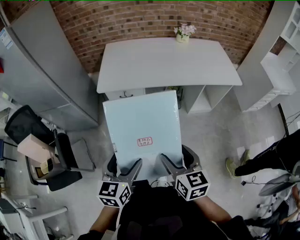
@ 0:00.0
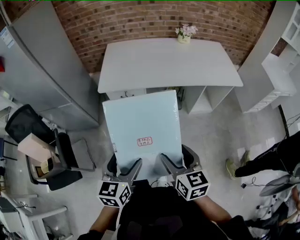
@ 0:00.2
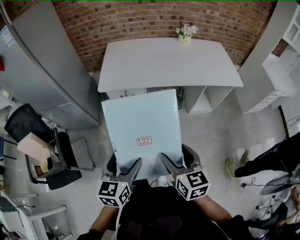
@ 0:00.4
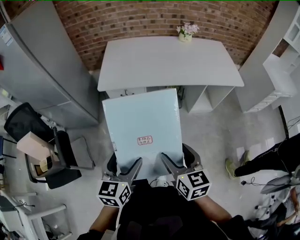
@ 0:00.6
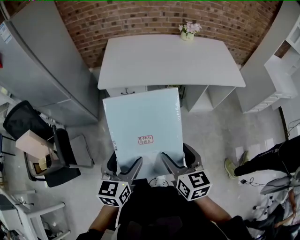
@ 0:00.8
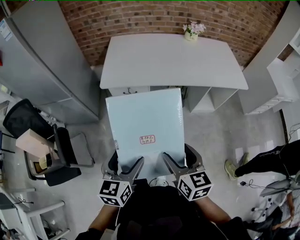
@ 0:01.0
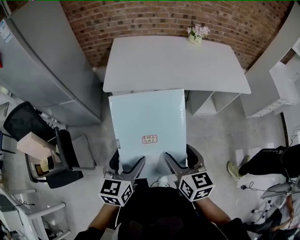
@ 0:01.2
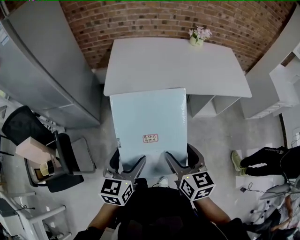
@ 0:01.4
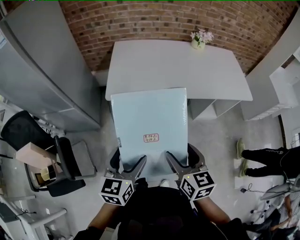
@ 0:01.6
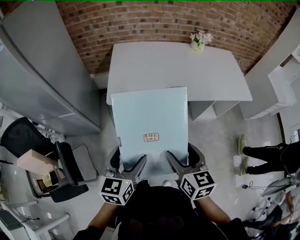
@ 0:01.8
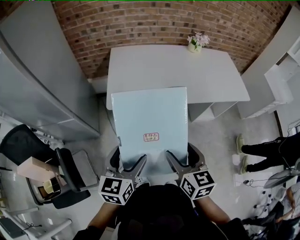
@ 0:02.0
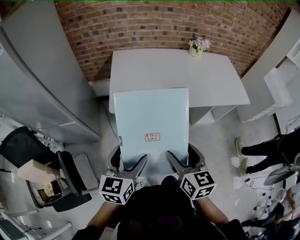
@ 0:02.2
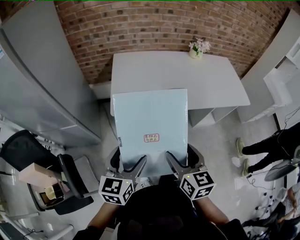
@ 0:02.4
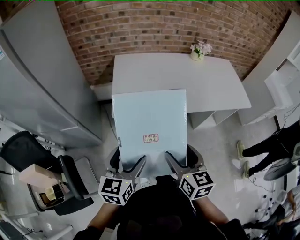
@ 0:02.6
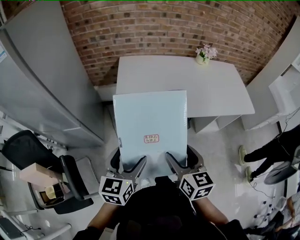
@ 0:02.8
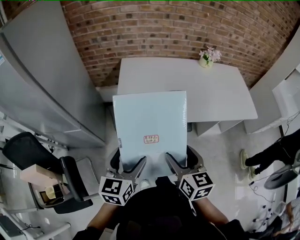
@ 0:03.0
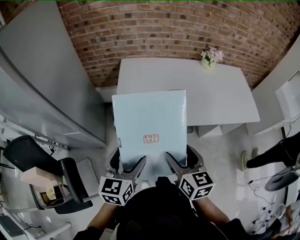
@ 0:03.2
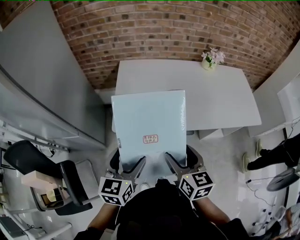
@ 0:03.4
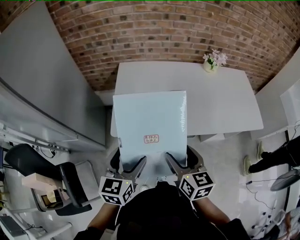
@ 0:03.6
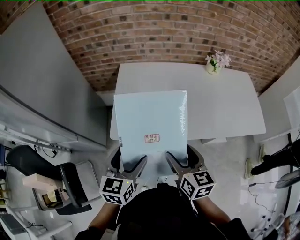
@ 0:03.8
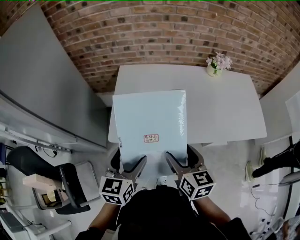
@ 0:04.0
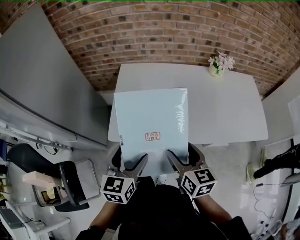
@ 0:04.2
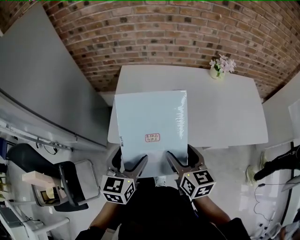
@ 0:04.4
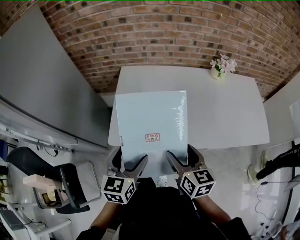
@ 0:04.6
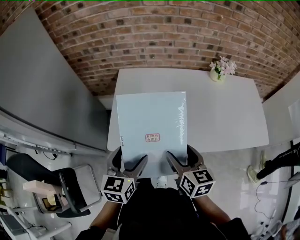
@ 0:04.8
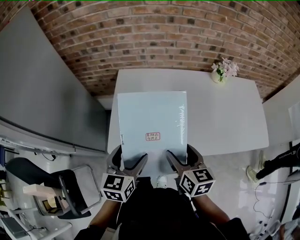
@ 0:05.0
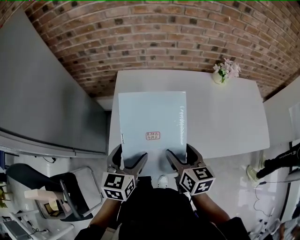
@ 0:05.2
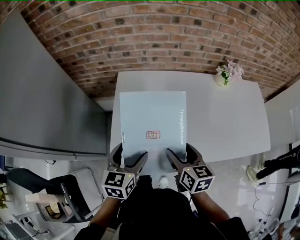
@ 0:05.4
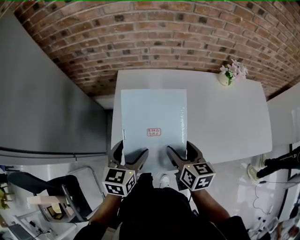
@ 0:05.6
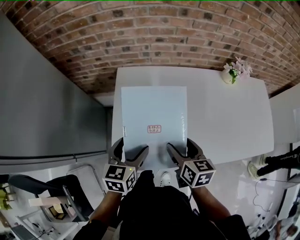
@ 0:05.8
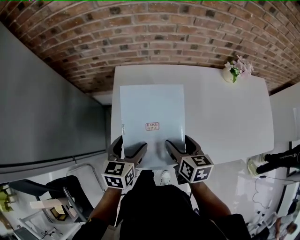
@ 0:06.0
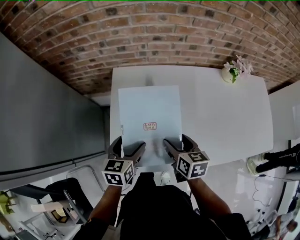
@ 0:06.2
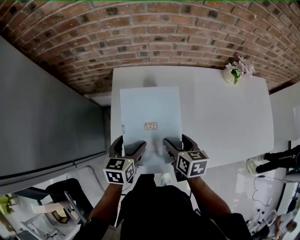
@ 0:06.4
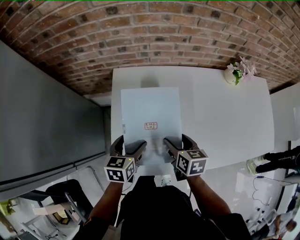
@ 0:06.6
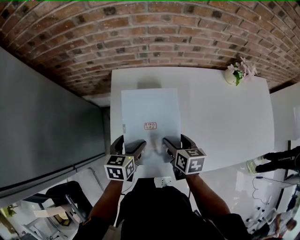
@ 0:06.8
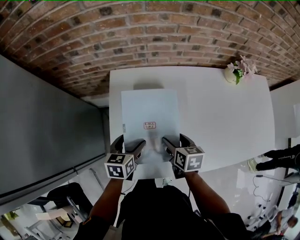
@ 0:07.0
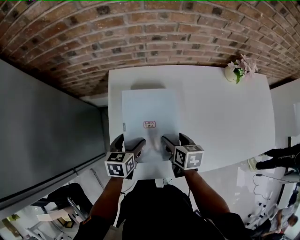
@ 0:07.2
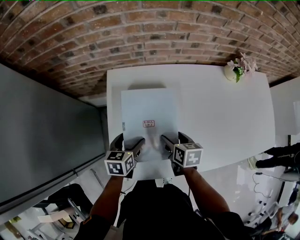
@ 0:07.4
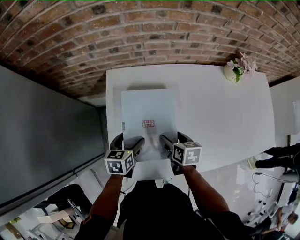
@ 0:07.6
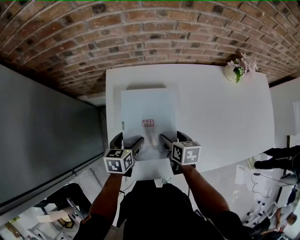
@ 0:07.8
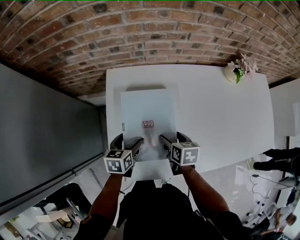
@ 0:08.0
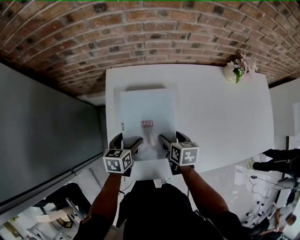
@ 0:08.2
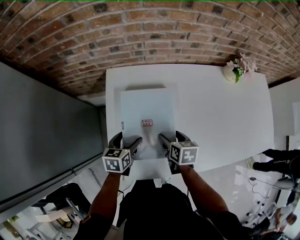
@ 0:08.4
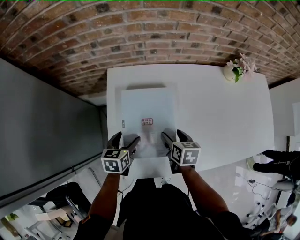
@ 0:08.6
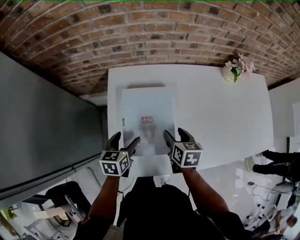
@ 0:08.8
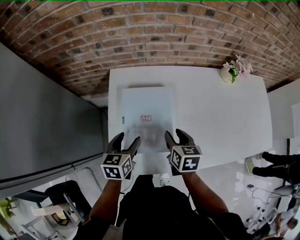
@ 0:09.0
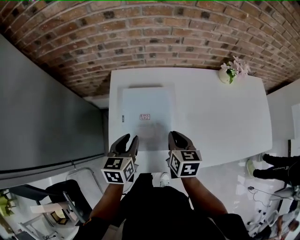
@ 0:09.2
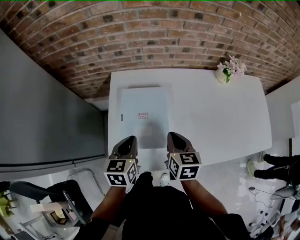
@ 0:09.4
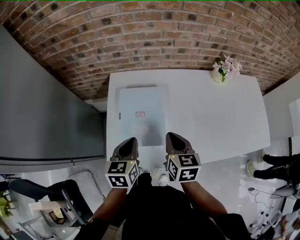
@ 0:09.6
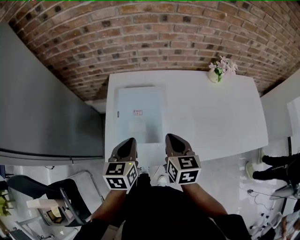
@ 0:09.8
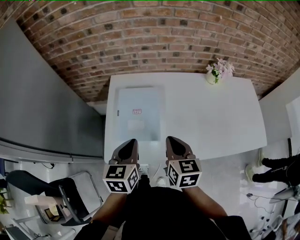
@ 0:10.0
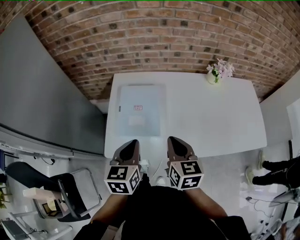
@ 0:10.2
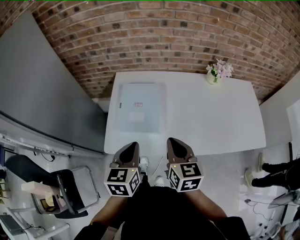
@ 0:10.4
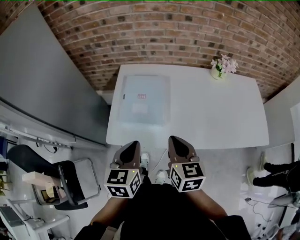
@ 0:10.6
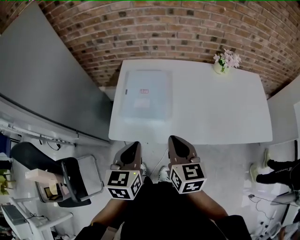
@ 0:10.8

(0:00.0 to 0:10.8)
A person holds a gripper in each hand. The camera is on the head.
0:00.0 - 0:01.6: The two grippers go some 15 cm forward and to the left.
0:01.6 - 0:03.0: The two grippers go some 15 cm forward and to the left.
0:03.0 - 0:04.6: The two grippers go about 20 cm forward and to the right.
0:04.6 - 0:06.2: Both grippers move forward and downward, roughly 25 cm.
0:06.2 - 0:07.8: Both grippers move downward and forward, some 10 cm.
0:07.8 - 0:09.2: The grippers both shift upward by about 10 cm. The left gripper closes its fingers. Meanwhile the right gripper closes up.
0:09.2 - 0:10.8: The grippers both shift backward and upward by some 25 cm.

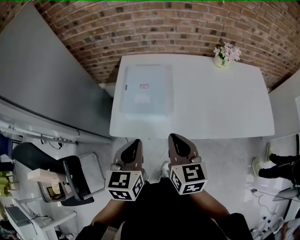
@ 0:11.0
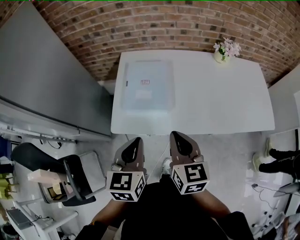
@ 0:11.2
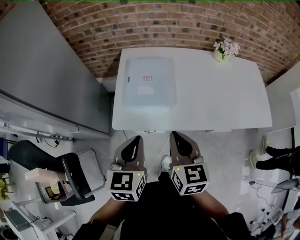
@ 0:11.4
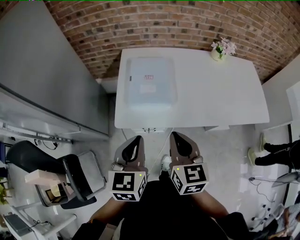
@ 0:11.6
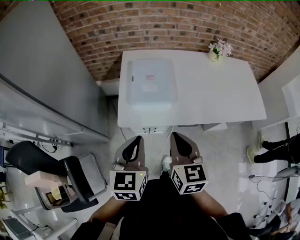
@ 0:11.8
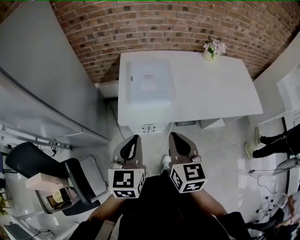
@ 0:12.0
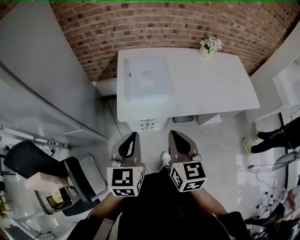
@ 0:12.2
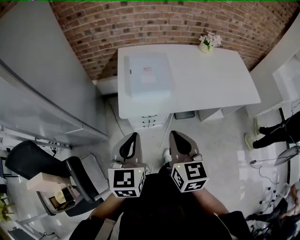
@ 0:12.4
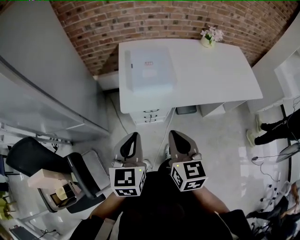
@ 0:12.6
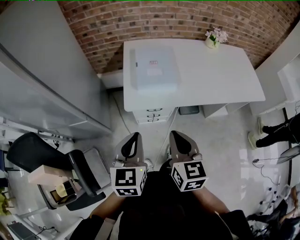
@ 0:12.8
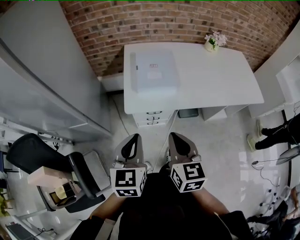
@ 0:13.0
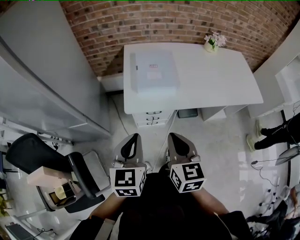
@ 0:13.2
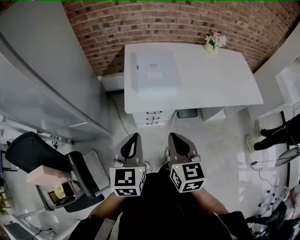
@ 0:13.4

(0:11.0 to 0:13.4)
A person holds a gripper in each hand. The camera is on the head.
0:11.0 - 0:12.2: The left gripper is displaced to the left and backward by some 15 cm, while the right gripper heads backward and to the left, covering some 15 cm.
0:12.2 - 0:13.4: The right gripper shifts by roughly 5 cm. The left gripper changes place by about 5 cm.

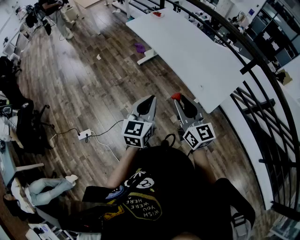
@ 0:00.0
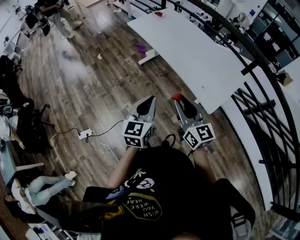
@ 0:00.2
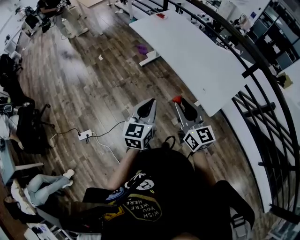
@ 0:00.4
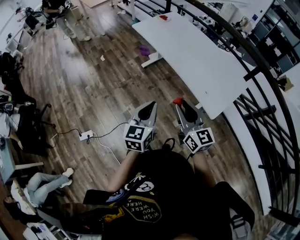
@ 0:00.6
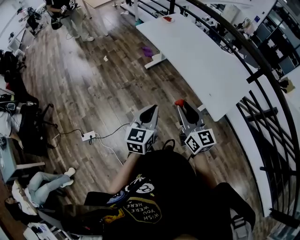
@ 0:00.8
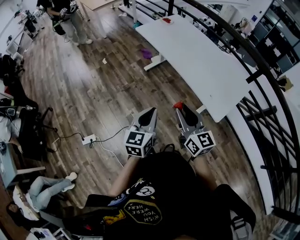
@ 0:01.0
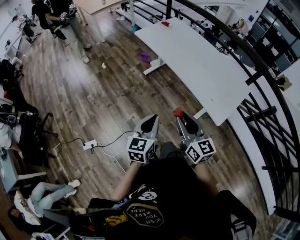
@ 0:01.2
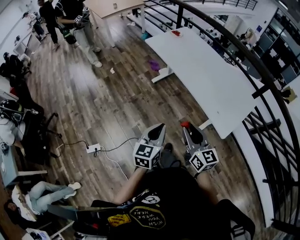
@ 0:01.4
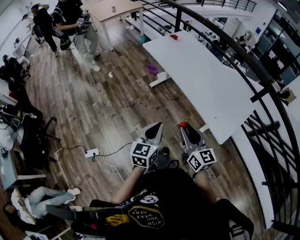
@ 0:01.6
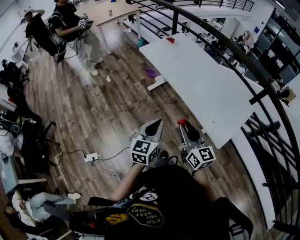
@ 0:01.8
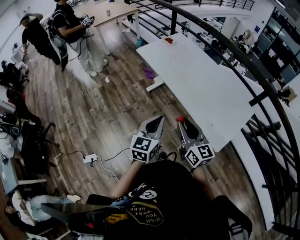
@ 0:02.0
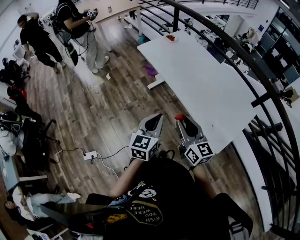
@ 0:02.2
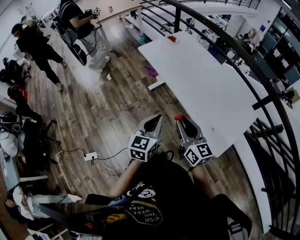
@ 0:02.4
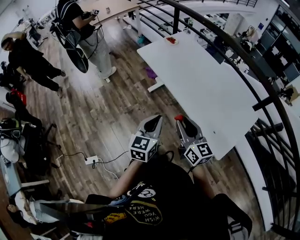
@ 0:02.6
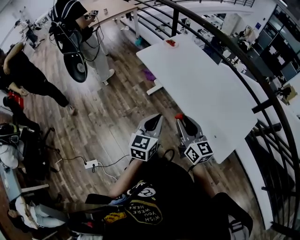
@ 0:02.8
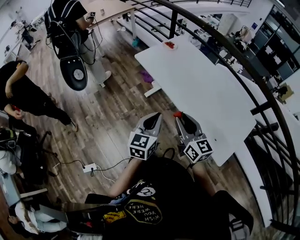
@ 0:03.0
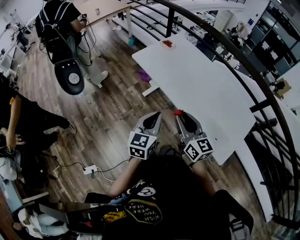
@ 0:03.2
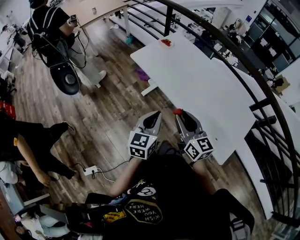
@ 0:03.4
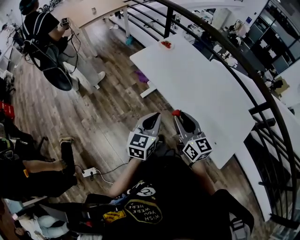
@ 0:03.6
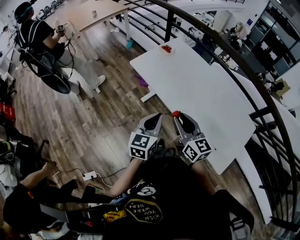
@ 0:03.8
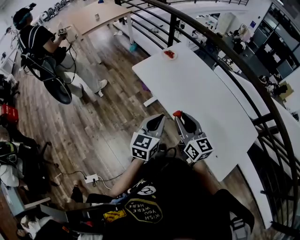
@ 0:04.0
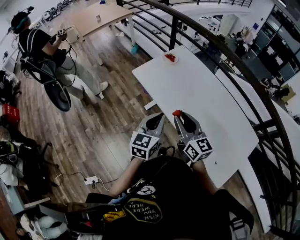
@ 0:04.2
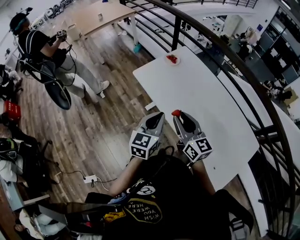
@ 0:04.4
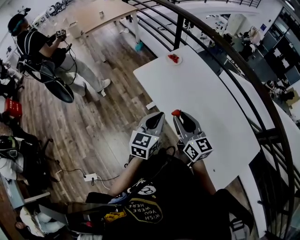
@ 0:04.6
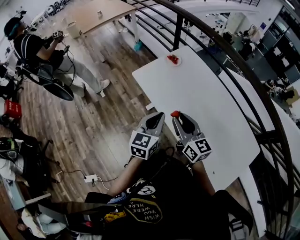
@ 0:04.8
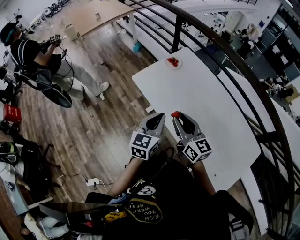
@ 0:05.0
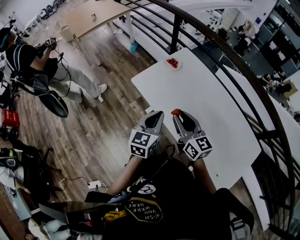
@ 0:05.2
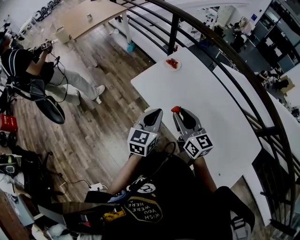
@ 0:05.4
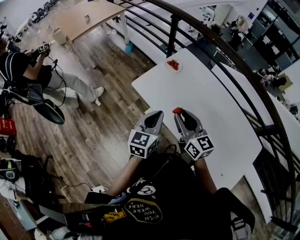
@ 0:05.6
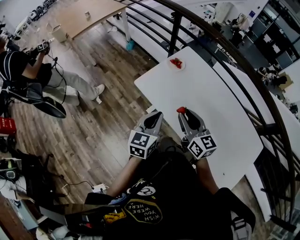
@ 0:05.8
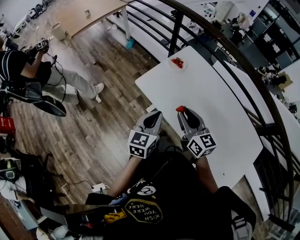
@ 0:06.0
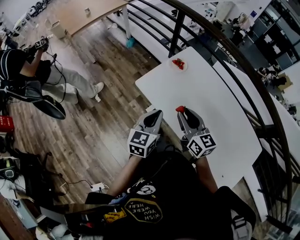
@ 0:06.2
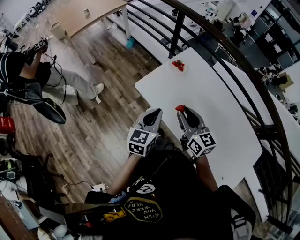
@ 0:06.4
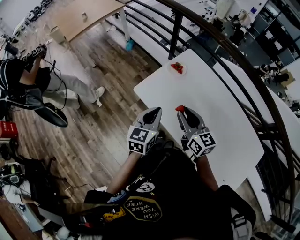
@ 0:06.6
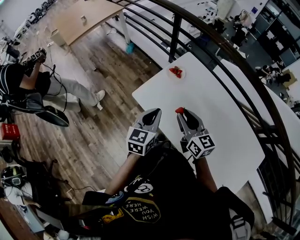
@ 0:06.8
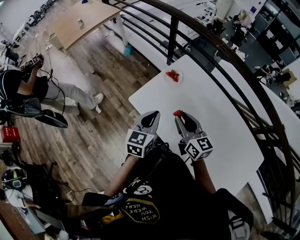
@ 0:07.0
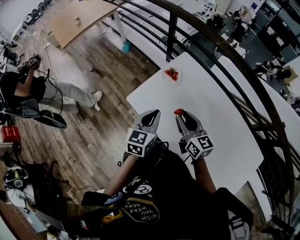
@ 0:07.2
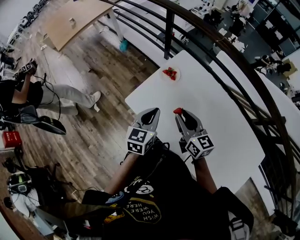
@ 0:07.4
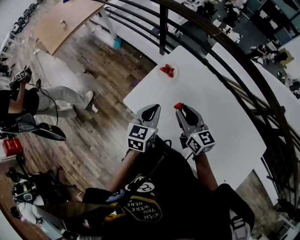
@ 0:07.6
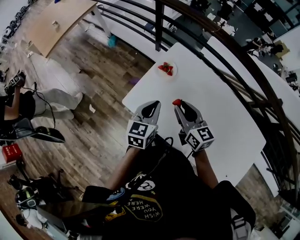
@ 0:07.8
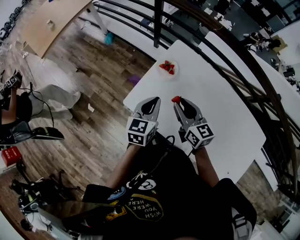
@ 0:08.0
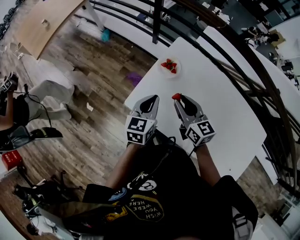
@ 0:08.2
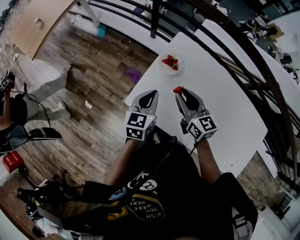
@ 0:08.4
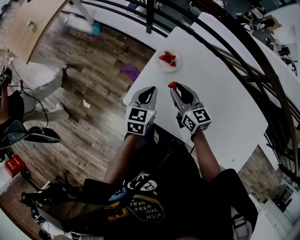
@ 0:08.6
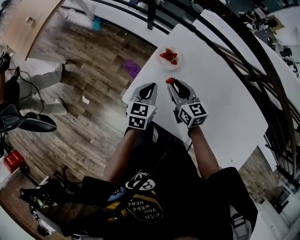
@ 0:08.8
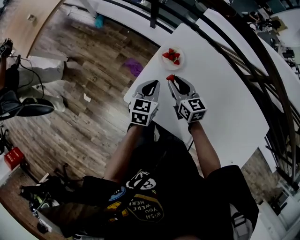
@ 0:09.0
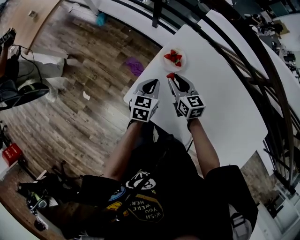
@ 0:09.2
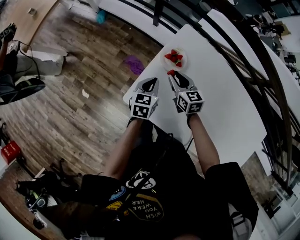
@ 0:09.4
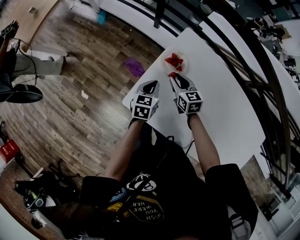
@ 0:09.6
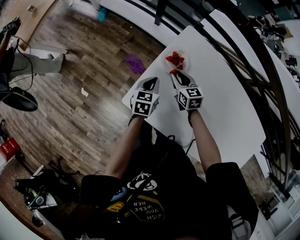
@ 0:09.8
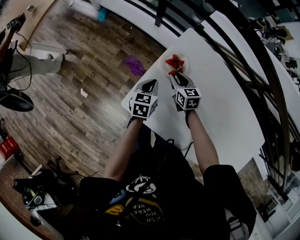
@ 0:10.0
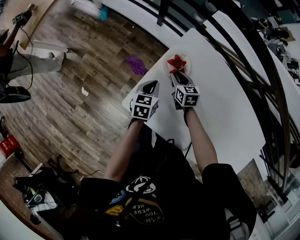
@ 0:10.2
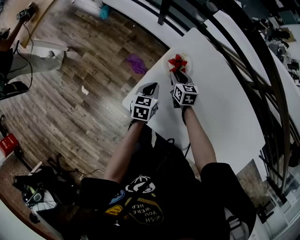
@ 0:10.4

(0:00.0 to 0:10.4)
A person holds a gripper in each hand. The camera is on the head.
0:00.0 - 0:01.4: The right gripper goes roughly 10 cm to the left. Meanwhile the left gripper travels to the left and downward by about 10 cm.
0:01.4 - 0:03.0: Both grippers travel together forward, some 30 cm.
0:03.0 - 0:04.4: The grippers both shift forward by roughly 20 cm.
0:04.4 - 0:06.0: Both grippers move forward and to the left, roughly 20 cm.
0:06.0 - 0:07.4: The two grippers go some 15 cm forward.
0:07.4 - 0:09.0: The left gripper is displaced forward and downward by approximately 20 cm, while the right gripper moves forward, downward and to the left, about 25 cm.
0:09.0 - 0:10.4: The right gripper goes roughly 20 cm downward and forward. Meanwhile the left gripper goes some 10 cm downward.
